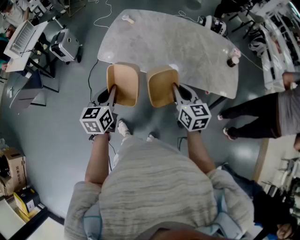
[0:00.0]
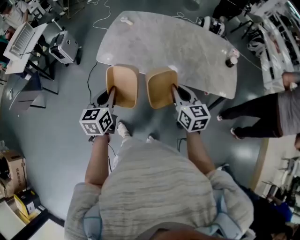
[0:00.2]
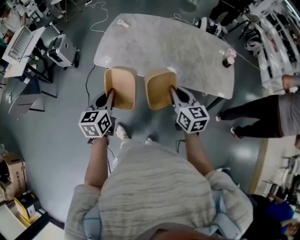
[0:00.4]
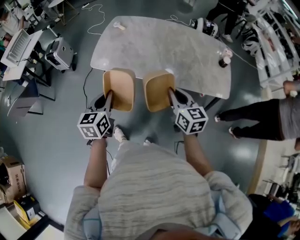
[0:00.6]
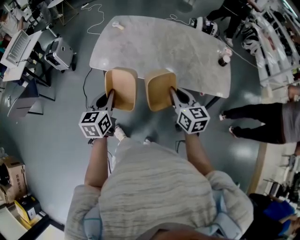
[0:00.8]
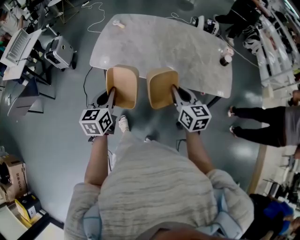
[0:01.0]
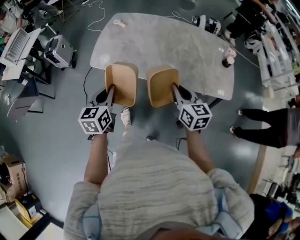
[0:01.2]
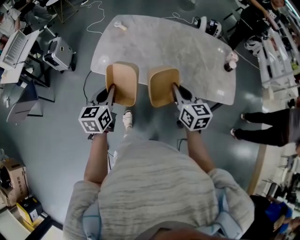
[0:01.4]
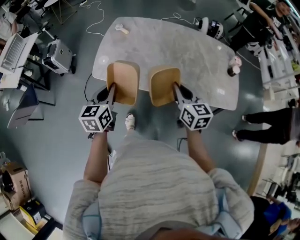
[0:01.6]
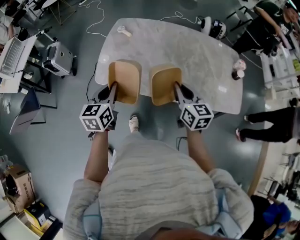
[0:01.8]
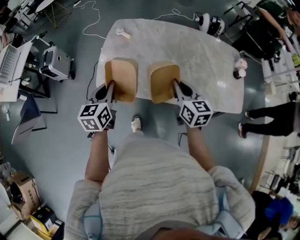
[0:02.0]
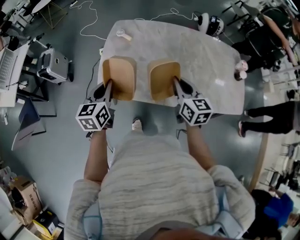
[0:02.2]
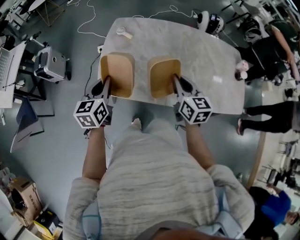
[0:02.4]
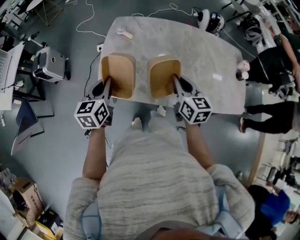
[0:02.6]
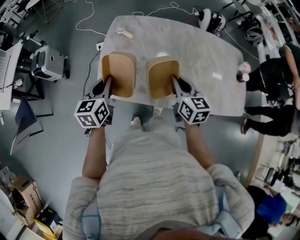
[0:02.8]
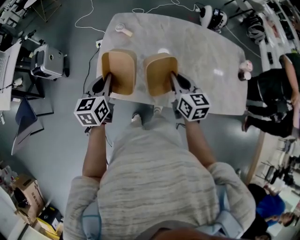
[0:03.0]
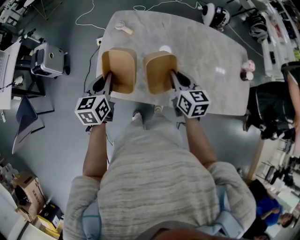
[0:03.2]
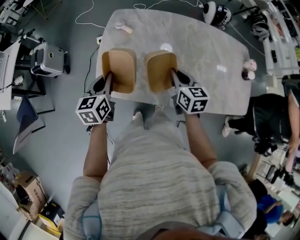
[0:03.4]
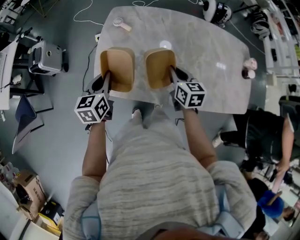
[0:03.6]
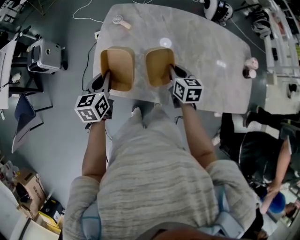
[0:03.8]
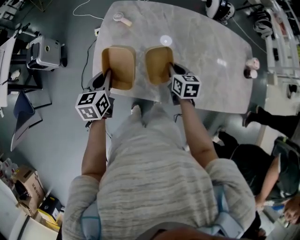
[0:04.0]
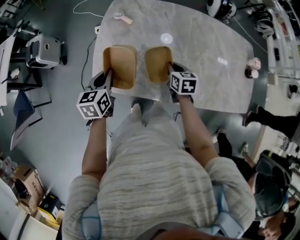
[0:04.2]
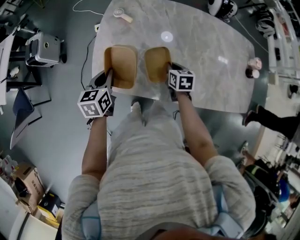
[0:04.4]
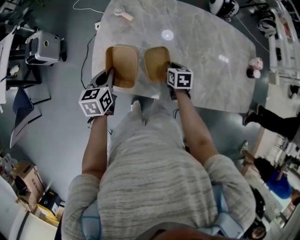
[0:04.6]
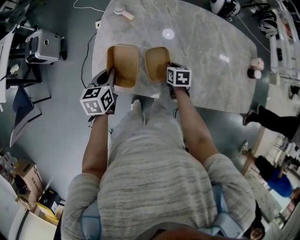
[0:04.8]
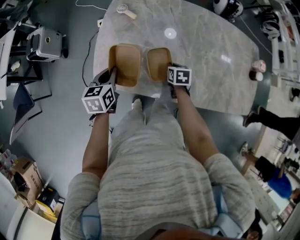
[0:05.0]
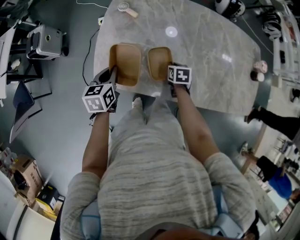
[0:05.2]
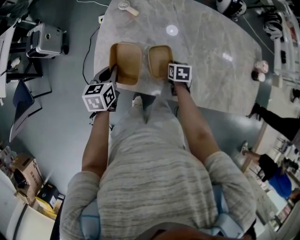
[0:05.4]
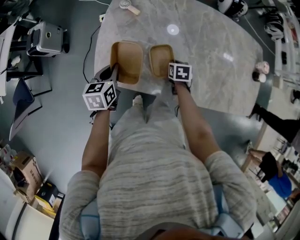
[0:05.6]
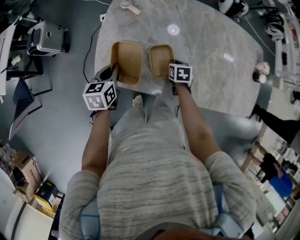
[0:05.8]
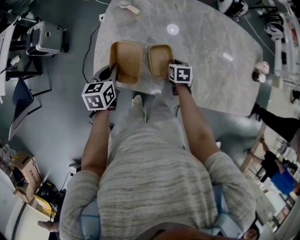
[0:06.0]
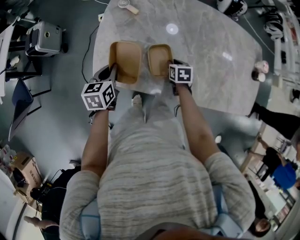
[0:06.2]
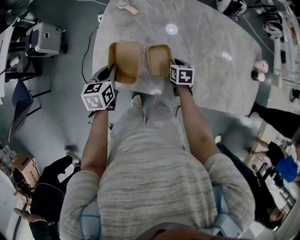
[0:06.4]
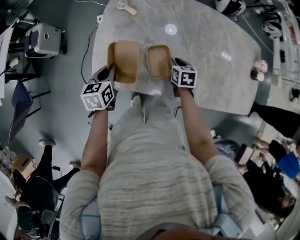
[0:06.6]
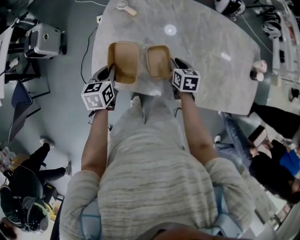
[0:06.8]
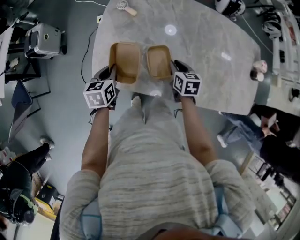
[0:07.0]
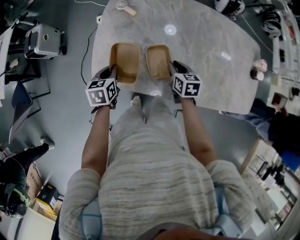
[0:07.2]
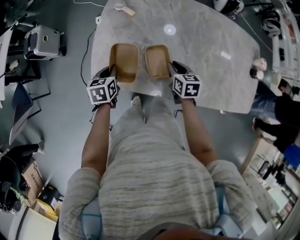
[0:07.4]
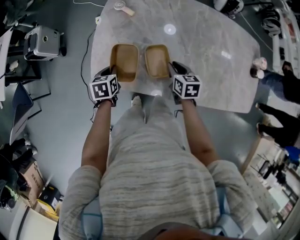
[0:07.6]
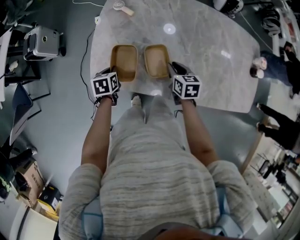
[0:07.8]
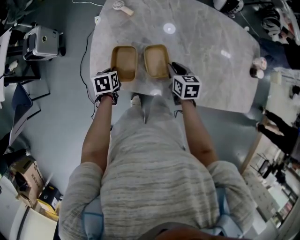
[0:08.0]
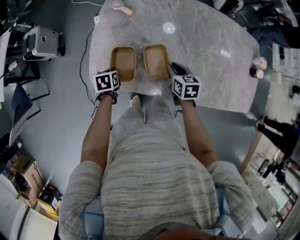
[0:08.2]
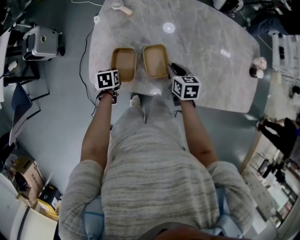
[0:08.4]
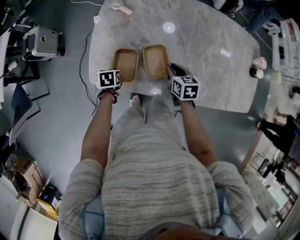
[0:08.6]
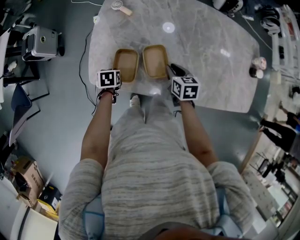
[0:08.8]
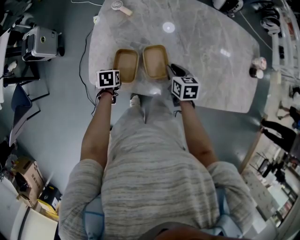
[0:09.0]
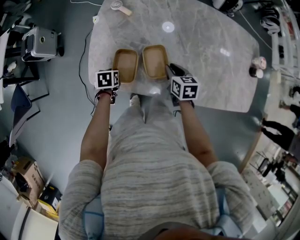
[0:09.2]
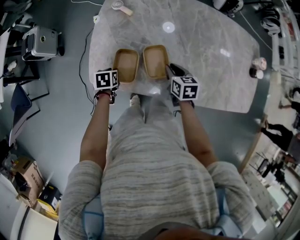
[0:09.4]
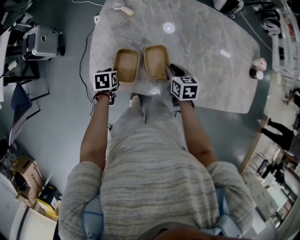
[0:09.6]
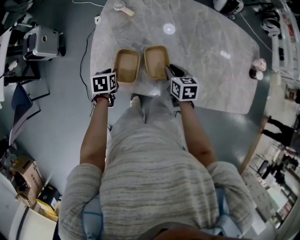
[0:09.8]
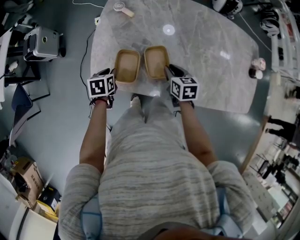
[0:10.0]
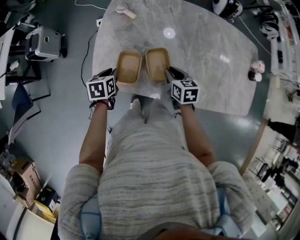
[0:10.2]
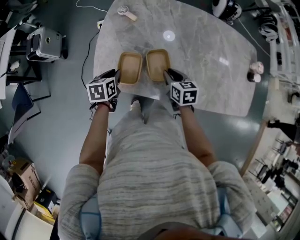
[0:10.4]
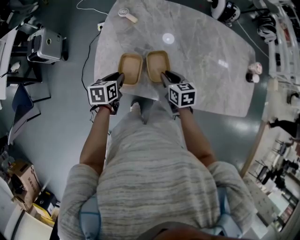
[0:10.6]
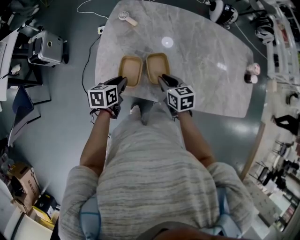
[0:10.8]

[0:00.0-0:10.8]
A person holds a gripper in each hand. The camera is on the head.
0:00.0 to 0:01.6: The grippers both shift forward by roughly 15 cm.
0:01.6 to 0:03.0: The two grippers go about 25 cm forward and to the left.
0:03.0 to 0:04.6: The right gripper shifts about 20 cm downward, and angles its fingers downward, by roughly 30 degrees; the left gripper goes approximately 10 cm downward.
0:04.6 to 0:06.2: The right gripper goes roughly 5 cm downward.
0:06.2 to 0:07.8: The left gripper moves downward, roughly 10 cm. The right gripper shifts some 10 cm upward.
0:07.8 to 0:09.2: The left gripper changes place by some 5 cm.
0:09.2 to 0:10.8: The right gripper goes approximately 10 cm to the left and upward; the left gripper shifts approximately 10 cm upward, and rotates approximately 30 degrees.

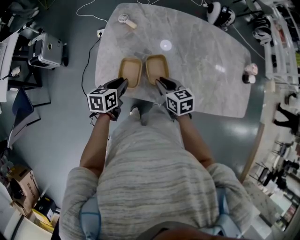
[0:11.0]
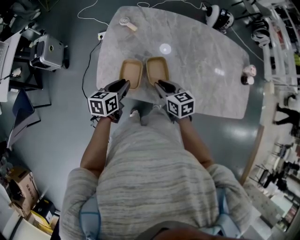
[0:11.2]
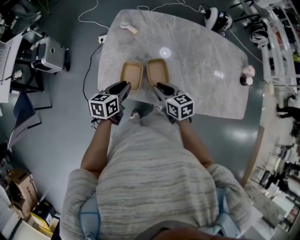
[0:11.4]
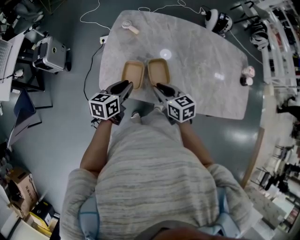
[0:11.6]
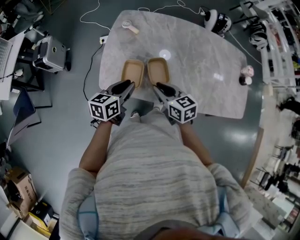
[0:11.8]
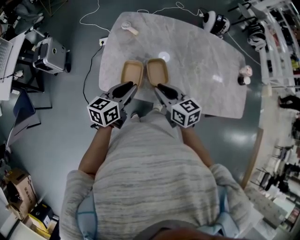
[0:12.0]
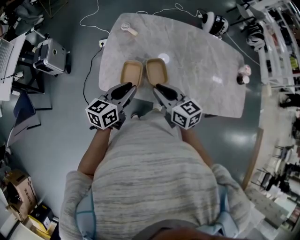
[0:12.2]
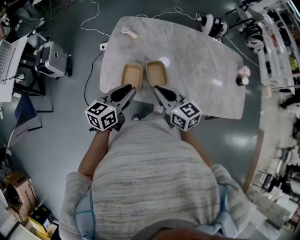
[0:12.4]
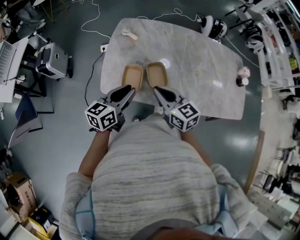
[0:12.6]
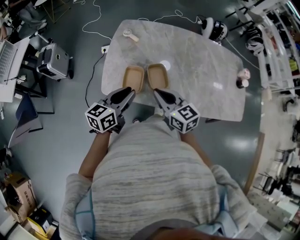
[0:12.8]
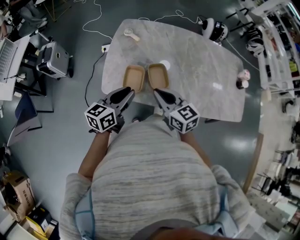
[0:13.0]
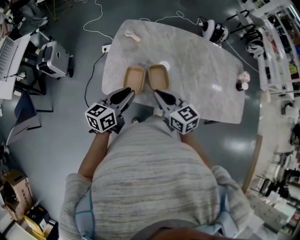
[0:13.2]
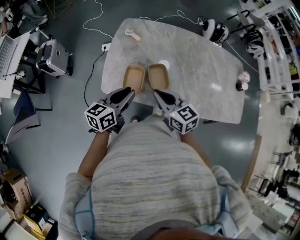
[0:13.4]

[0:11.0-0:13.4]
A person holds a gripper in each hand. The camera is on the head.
0:11.0 to 0:12.2: Both grippers travel together upward and backward, some 15 cm. The left gripper turns by about 30 degrees. Meanwhile the right gripper turns by some 20 degrees.
0:12.2 to 0:13.4: The grippers make only small movements.

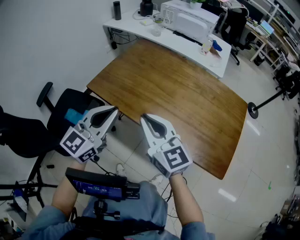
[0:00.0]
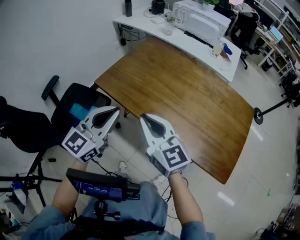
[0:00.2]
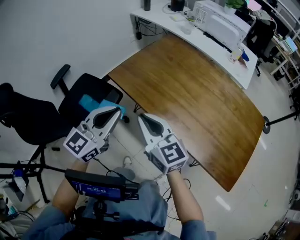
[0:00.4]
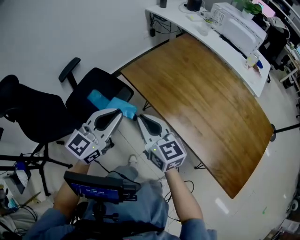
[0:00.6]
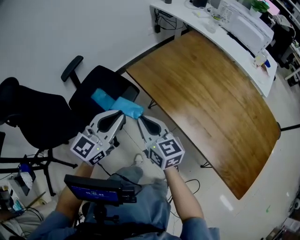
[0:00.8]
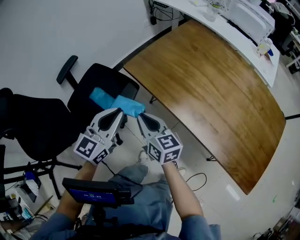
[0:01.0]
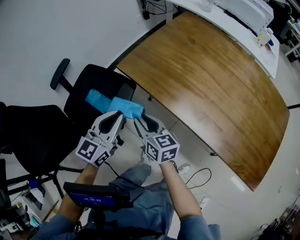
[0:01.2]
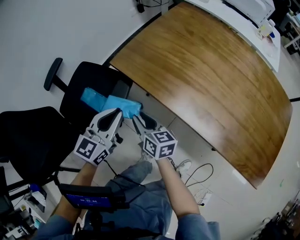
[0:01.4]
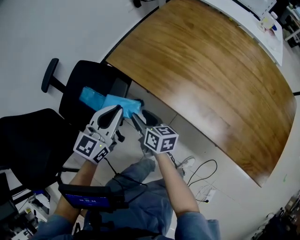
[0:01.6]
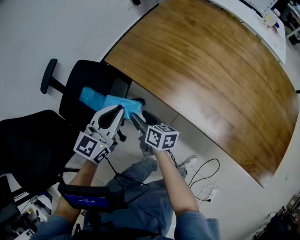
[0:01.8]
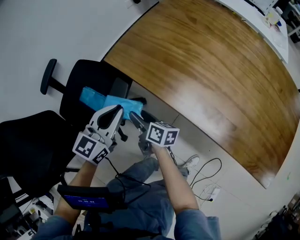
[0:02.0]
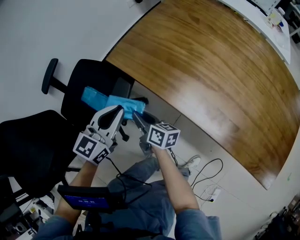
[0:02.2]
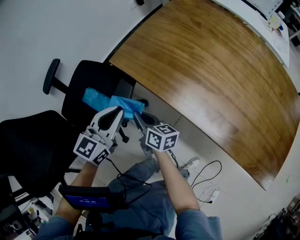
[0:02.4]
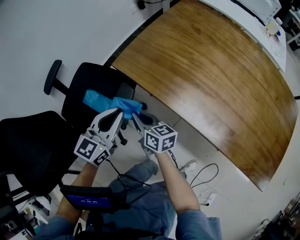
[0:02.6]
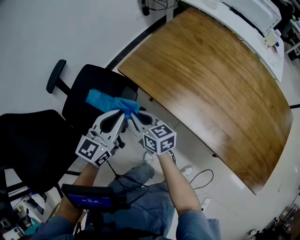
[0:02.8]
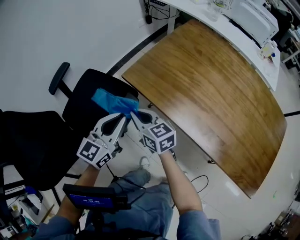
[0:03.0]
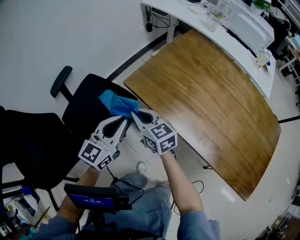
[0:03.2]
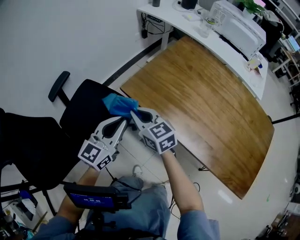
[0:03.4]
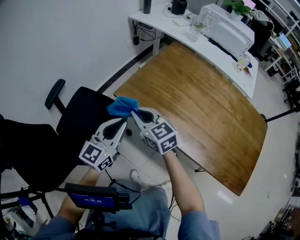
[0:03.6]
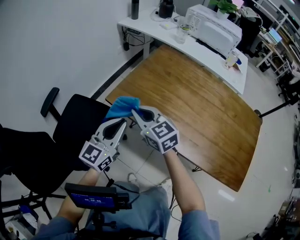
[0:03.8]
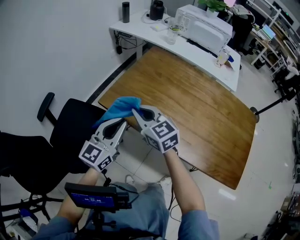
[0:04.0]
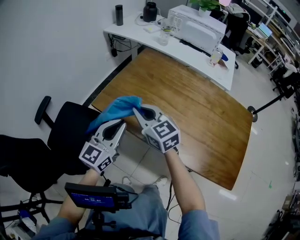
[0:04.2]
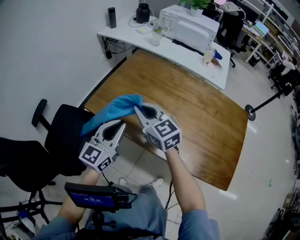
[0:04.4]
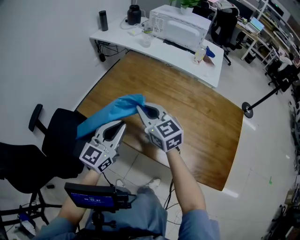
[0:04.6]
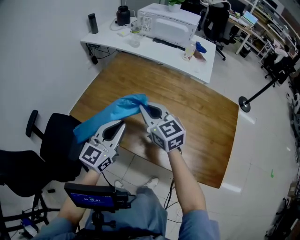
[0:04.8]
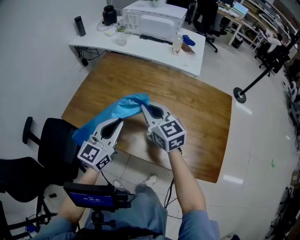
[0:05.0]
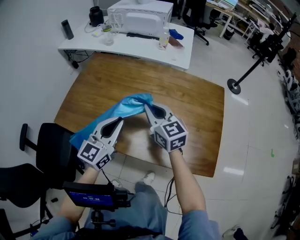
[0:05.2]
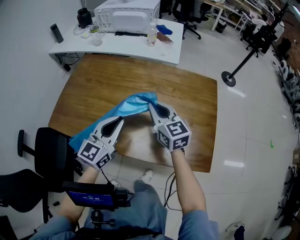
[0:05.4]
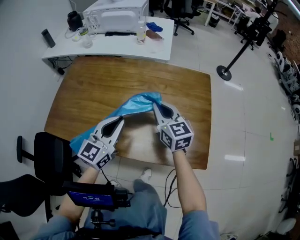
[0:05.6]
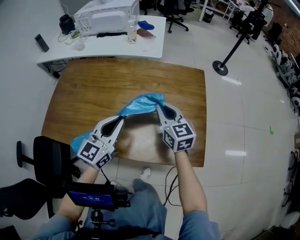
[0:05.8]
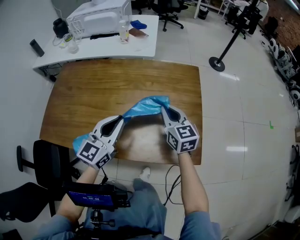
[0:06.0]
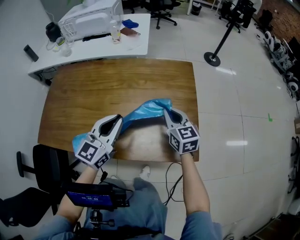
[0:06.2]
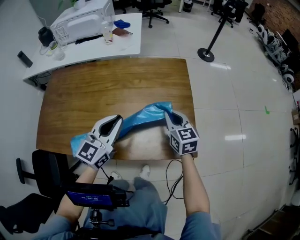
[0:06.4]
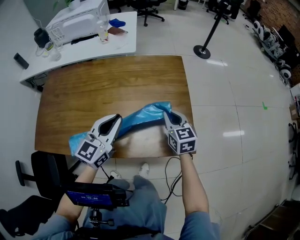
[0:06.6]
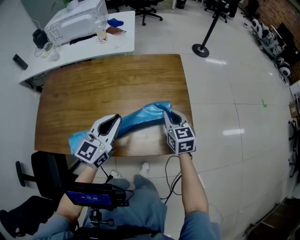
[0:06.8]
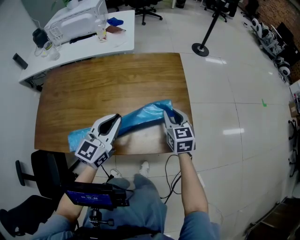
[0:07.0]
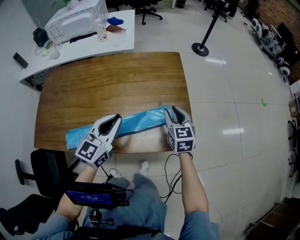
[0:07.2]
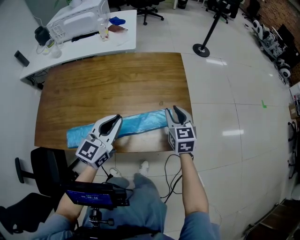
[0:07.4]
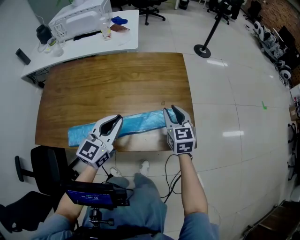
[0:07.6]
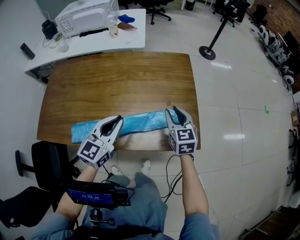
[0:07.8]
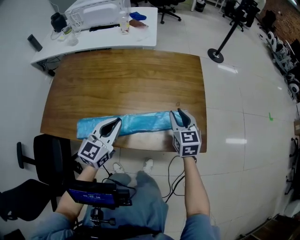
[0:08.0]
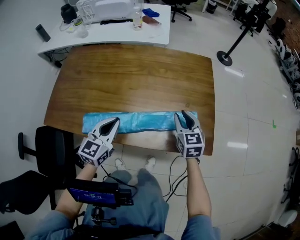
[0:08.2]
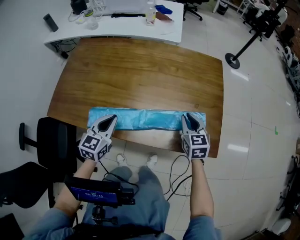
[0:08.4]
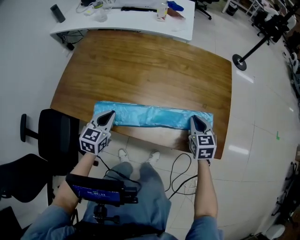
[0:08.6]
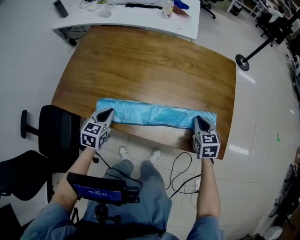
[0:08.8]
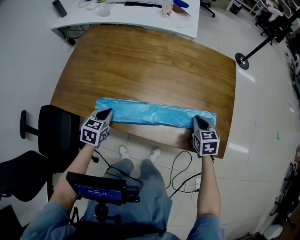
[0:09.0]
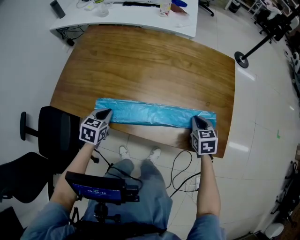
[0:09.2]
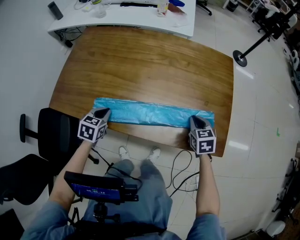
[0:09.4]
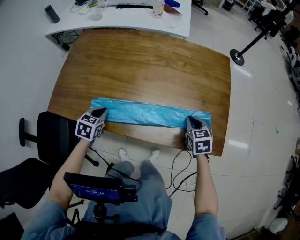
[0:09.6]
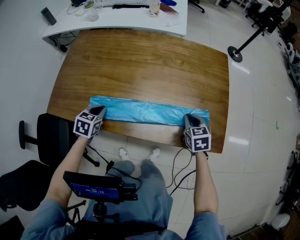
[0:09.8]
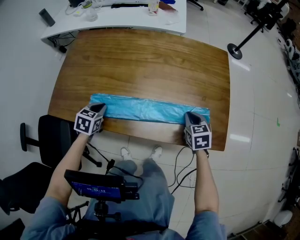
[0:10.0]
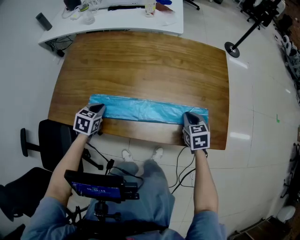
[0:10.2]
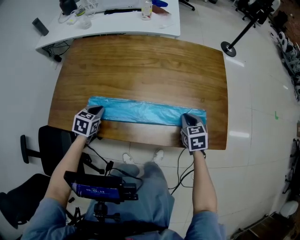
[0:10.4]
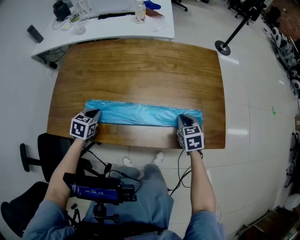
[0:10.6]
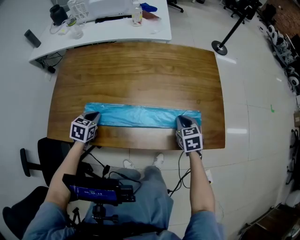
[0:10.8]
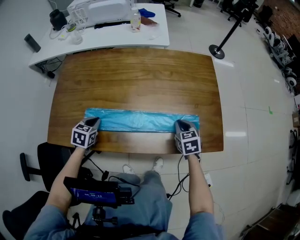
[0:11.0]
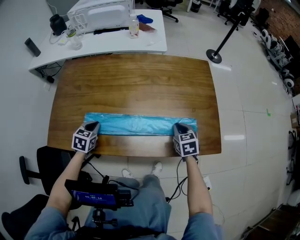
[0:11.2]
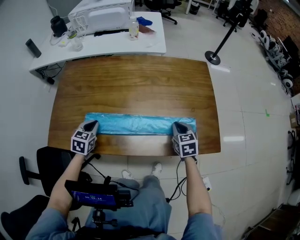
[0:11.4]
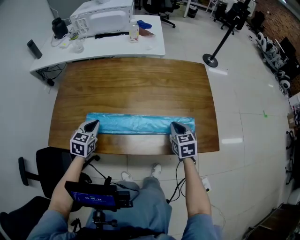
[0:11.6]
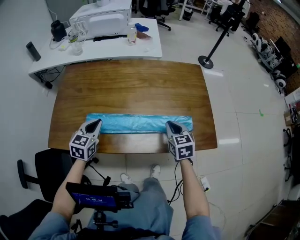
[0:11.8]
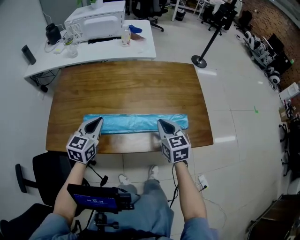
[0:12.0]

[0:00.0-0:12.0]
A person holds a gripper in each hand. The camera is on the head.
0:00.0 to 0:01.6: The right gripper goes approximately 40 cm downward and to the left, rotates around the line of its fingers by about 40 degrees, clockwise from behind, and opens; the left gripper goes some 30 cm downward, to the left and forward.
0:01.6 to 0:03.0: The left gripper shifts by approximately 5 cm, while the right gripper goes some 15 cm upward, forward and to the left, rotates approximately 30 degrees, and closes.
0:03.0 to 0:04.4: Both grippers travel together to the right and upward, some 25 cm. The right gripper swivels about 30 degrees.
0:04.4 to 0:06.0: The left gripper ends up roughly 35 cm from where it was, and changes its angle by some 20 degrees; the right gripper ends up approximately 50 cm from where it was, and turns by some 40 degrees.
0:06.0 to 0:07.6: The left gripper changes place by about 5 cm; the right gripper moves to the right, about 10 cm, and opens.
0:07.6 to 0:09.0: The left gripper shifts approximately 30 cm to the left and downward, and tips its fingers downward by approximately 40 degrees; the right gripper heads downward and to the left, covering approximately 10 cm, rotates some 20 degrees, and closes.
0:09.0 to 0:10.4: The left gripper goes approximately 5 cm forward.
0:10.4 to 0:12.0: The right gripper goes about 15 cm upward and to the left. Meanwhile the left gripper goes about 15 cm upward, and tilts its fingers approximately 30 degrees upward.
